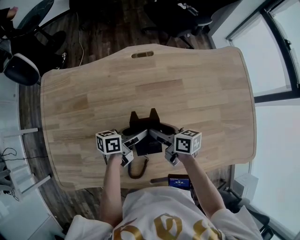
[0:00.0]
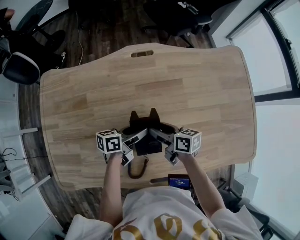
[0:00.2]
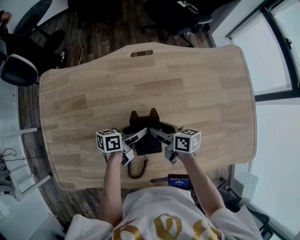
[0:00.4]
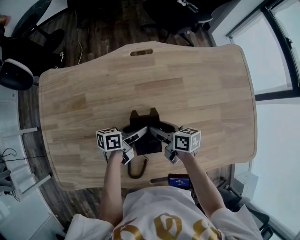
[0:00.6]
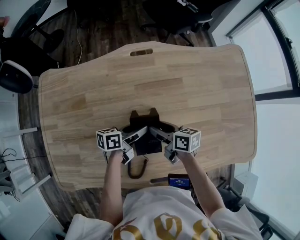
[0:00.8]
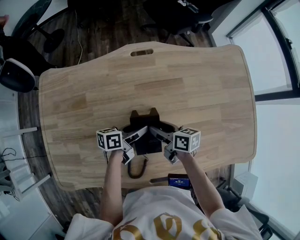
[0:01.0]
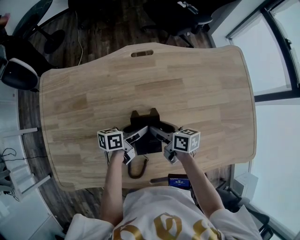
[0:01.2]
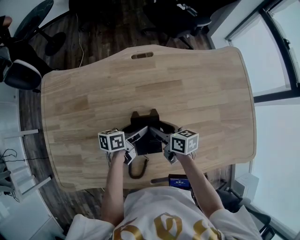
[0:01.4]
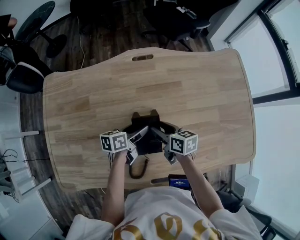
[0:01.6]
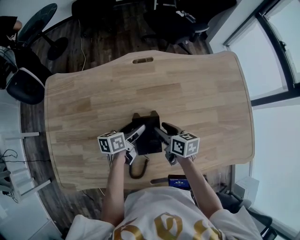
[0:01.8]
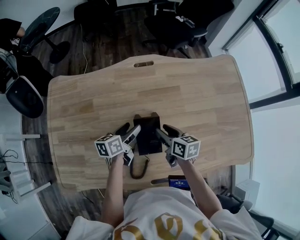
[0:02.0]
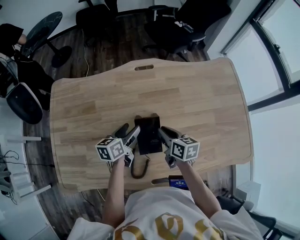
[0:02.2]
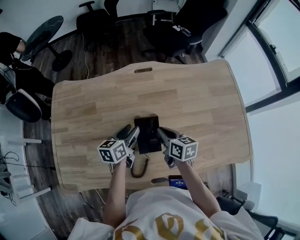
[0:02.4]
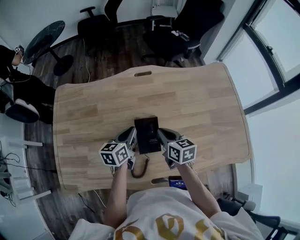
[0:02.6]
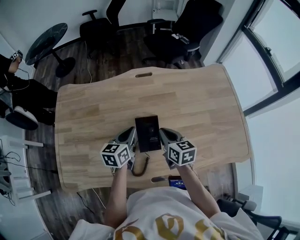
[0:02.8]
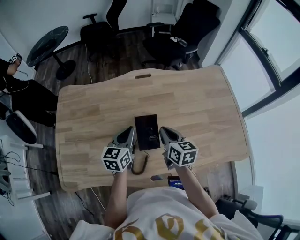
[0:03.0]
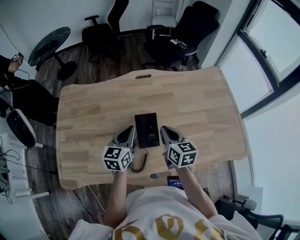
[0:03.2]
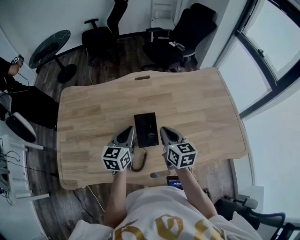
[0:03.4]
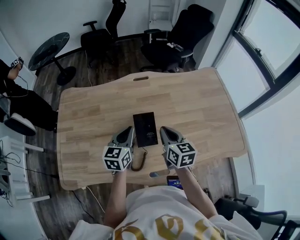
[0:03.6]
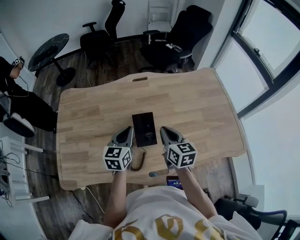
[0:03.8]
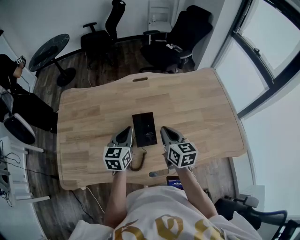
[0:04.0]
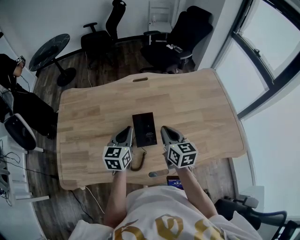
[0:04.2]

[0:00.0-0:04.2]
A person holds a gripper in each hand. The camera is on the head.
0:00.0 to 0:01.4: The grippers make only small movements.
0:01.4 to 0:02.8: The right gripper shifts approximately 10 cm upward and backward, swivels roughly 30 degrees, and closes up; the left gripper travels upward by roughly 15 cm, swivels approximately 40 degrees, and closes up.
0:02.8 to 0:04.2: The left gripper is displaced backward and upward by approximately 10 cm. Meanwhile the right gripper travels upward and backward by some 10 cm.

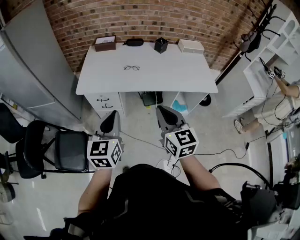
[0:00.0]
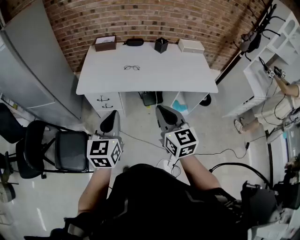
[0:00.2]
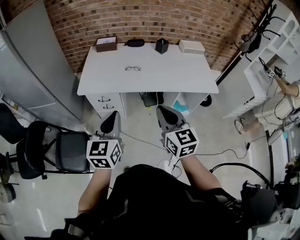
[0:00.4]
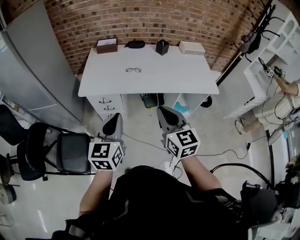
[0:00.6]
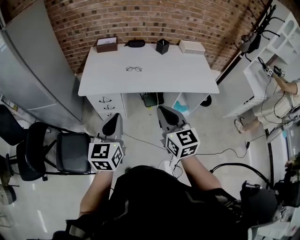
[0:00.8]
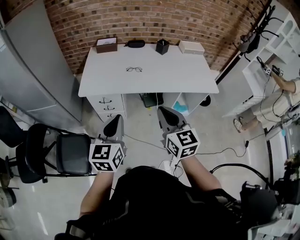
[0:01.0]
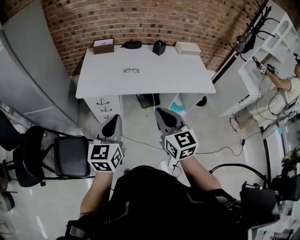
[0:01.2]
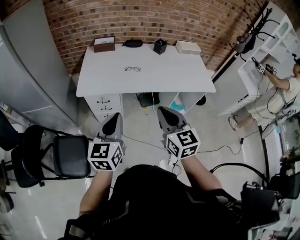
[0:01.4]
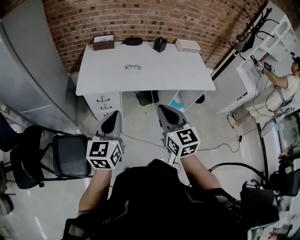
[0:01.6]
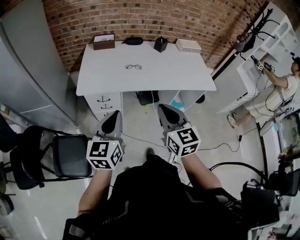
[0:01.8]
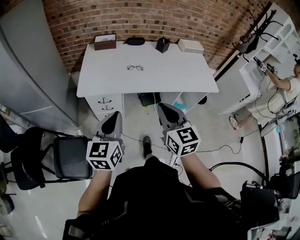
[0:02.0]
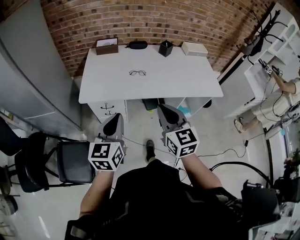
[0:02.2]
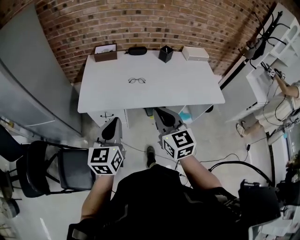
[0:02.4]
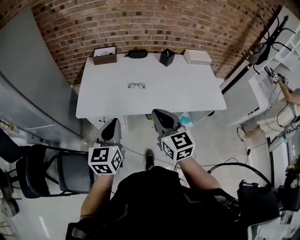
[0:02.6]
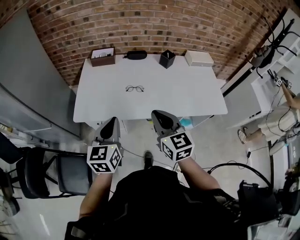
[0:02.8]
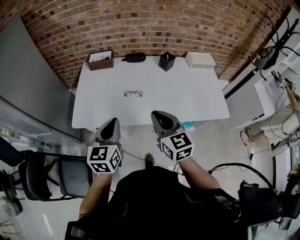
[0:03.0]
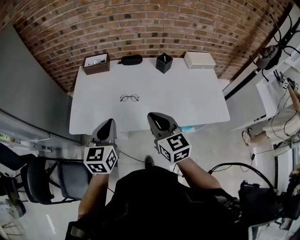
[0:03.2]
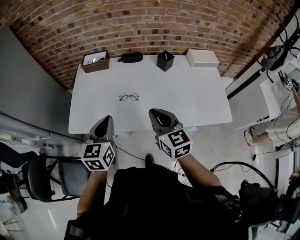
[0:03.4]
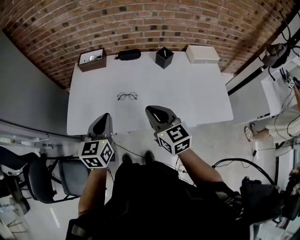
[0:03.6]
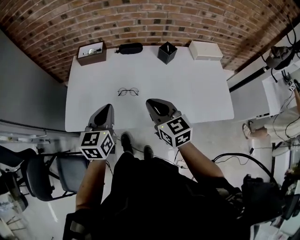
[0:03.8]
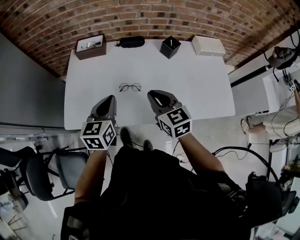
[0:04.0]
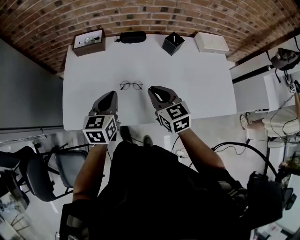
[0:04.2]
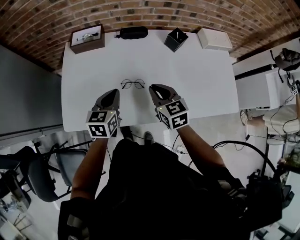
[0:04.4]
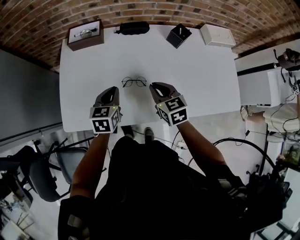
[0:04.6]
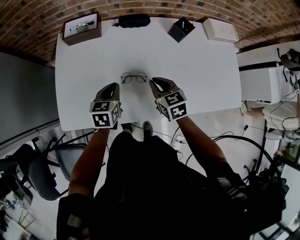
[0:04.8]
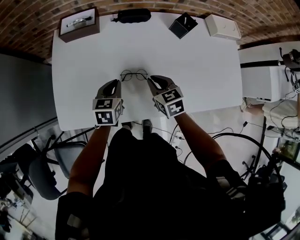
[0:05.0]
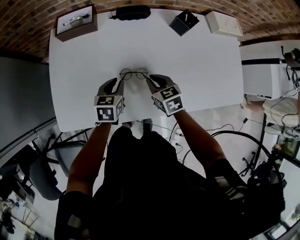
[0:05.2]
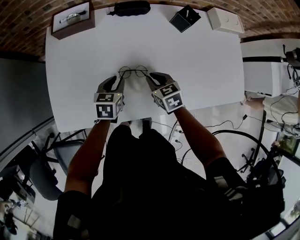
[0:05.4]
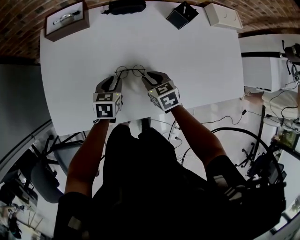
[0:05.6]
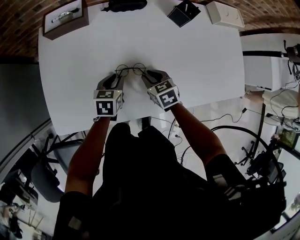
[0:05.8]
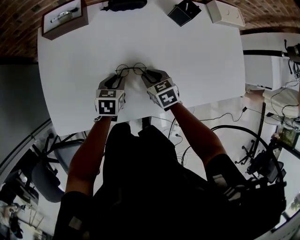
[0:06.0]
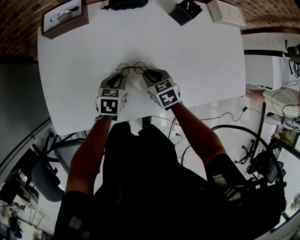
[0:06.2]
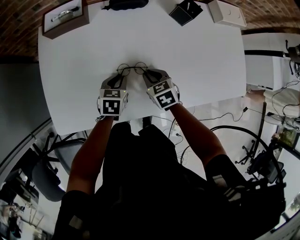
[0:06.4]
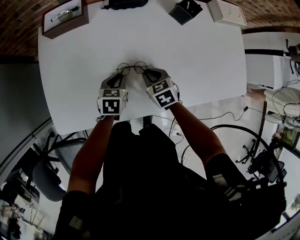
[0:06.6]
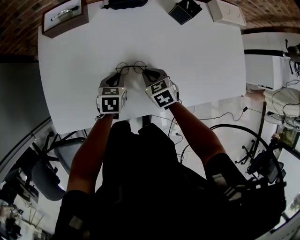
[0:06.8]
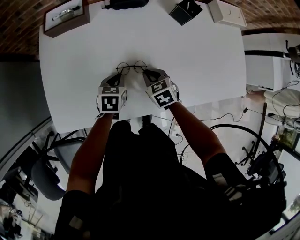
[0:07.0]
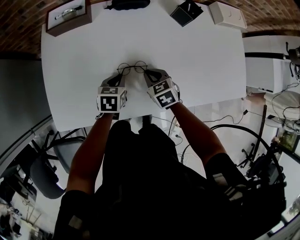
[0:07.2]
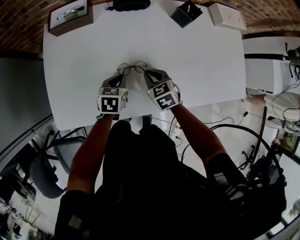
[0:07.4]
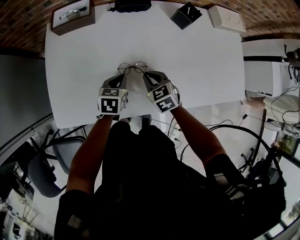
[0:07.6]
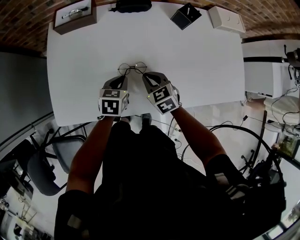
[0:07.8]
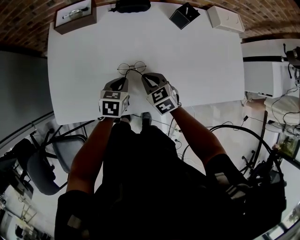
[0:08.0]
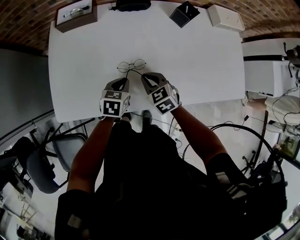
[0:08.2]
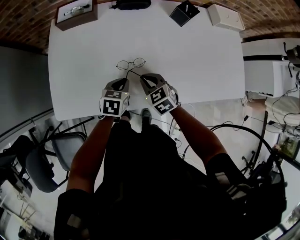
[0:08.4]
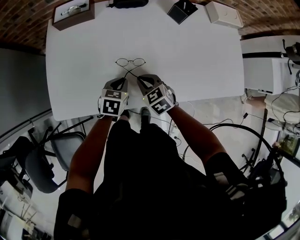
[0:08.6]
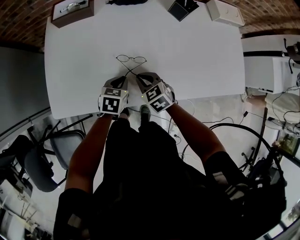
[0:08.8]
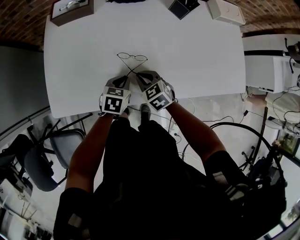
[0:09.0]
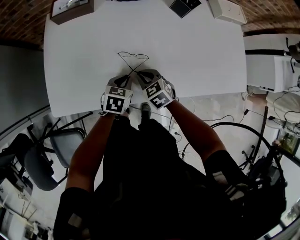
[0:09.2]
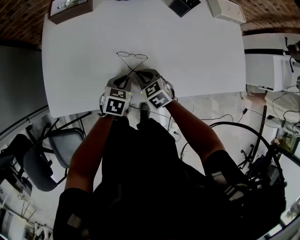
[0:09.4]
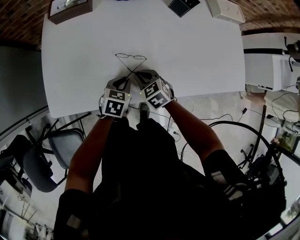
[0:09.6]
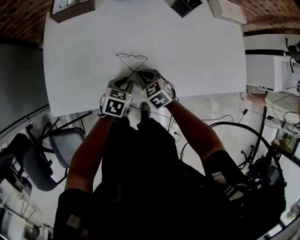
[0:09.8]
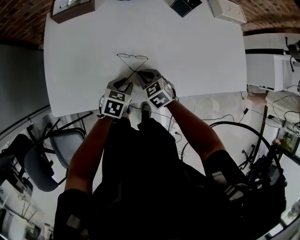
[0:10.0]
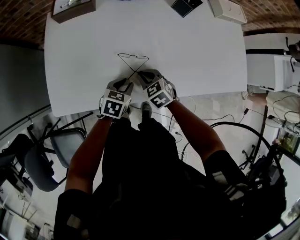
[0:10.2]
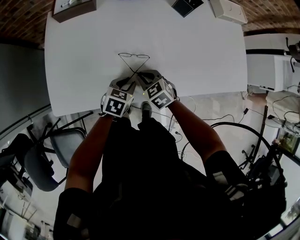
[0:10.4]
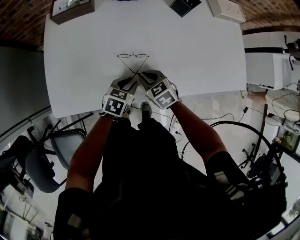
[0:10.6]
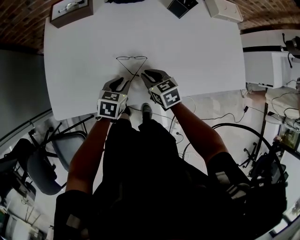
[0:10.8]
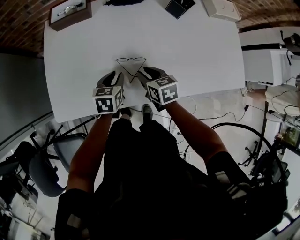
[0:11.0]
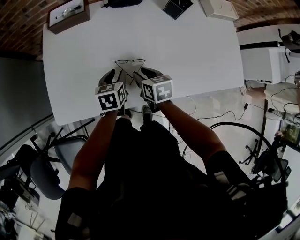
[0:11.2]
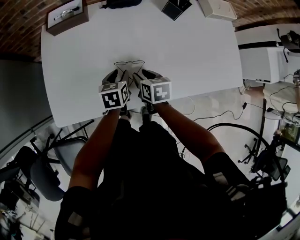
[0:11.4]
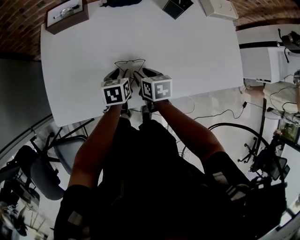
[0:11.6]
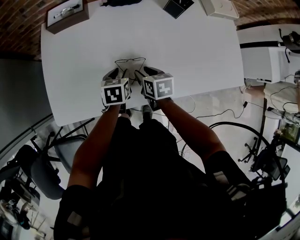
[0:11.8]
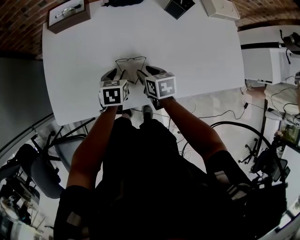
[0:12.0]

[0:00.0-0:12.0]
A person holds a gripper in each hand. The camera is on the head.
0:00.0 to 0:01.6: The grippers both shift to the left by roughly 10 cm.
0:01.6 to 0:03.0: The grippers both shift forward by approximately 25 cm.
0:03.0 to 0:04.4: The grippers both shift forward and downward by about 25 cm.
0:04.4 to 0:06.0: Both grippers travel together downward, about 20 cm. The left gripper swivels roughly 20 degrees, and opens up; the right gripper rotates about 20 degrees.
0:06.0 to 0:07.6: The grippers make only small movements.
0:07.6 to 0:09.0: The two grippers go some 5 cm backward.
0:09.0 to 0:10.4: The grippers move only a little.
0:10.4 to 0:12.0: The left gripper goes some 10 cm forward, and changes its angle by some 20 degrees. The right gripper ends up about 5 cm from where it was, turns by about 40 degrees, and opens its fingers.

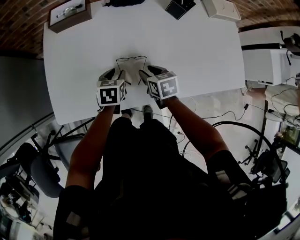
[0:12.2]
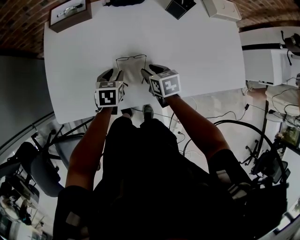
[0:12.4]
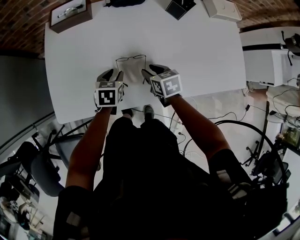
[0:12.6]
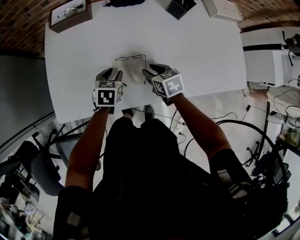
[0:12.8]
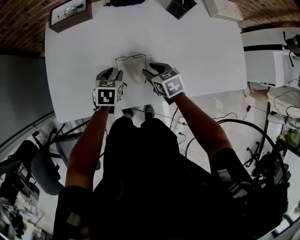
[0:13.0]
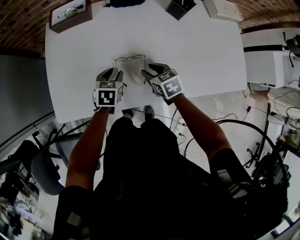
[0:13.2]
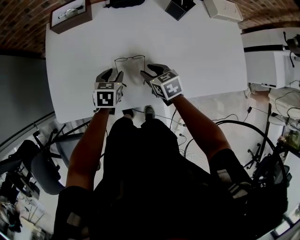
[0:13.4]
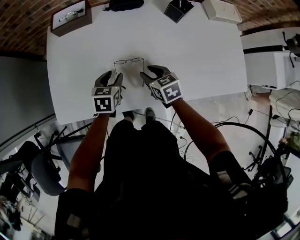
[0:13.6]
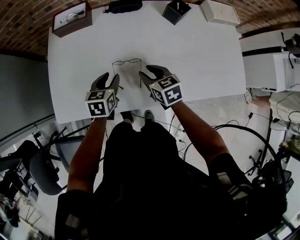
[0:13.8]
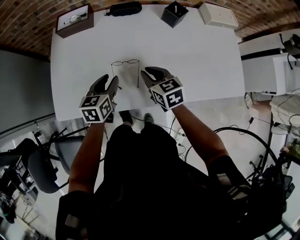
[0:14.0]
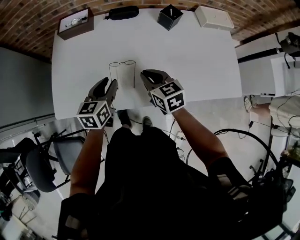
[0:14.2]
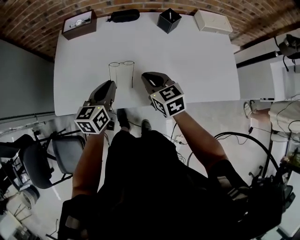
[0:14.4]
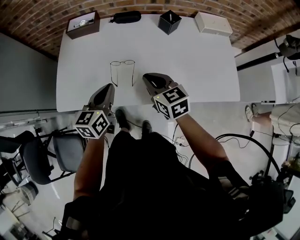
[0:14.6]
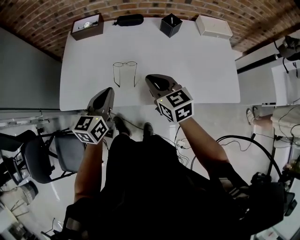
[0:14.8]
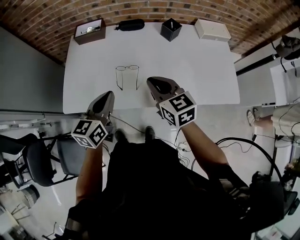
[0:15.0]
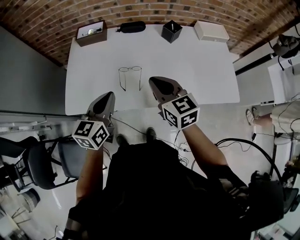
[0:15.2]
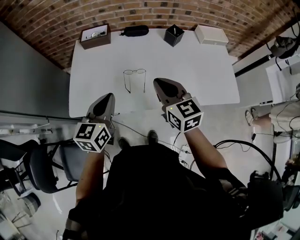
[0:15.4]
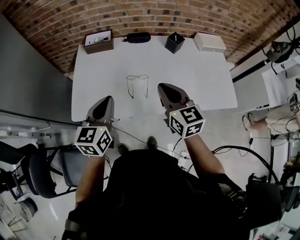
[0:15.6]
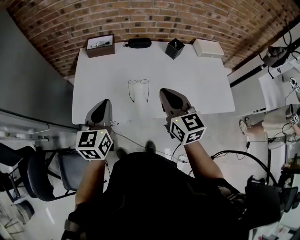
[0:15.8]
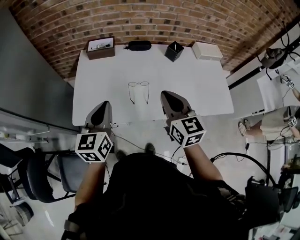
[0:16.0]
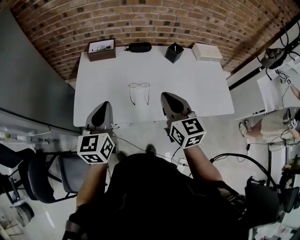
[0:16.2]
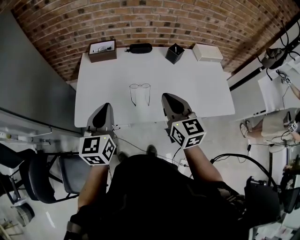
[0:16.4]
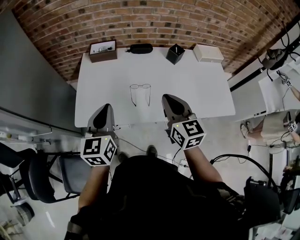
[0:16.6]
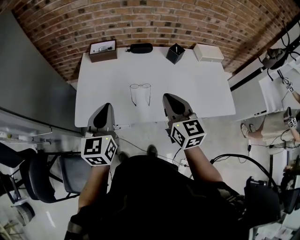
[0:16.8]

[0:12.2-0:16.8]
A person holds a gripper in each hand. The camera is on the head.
0:12.2 to 0:13.8: The grippers both shift upward by about 5 cm.
0:13.8 to 0:15.2: The two grippers go roughly 25 cm upward and backward. The right gripper swivels approximately 20 degrees, and closes its fingers. Meanwhile the left gripper turns by roughly 20 degrees, and closes.
0:15.2 to 0:16.8: The left gripper shifts roughly 10 cm to the left and upward. The right gripper shifts roughly 5 cm upward.

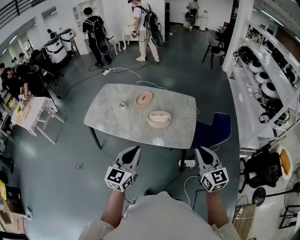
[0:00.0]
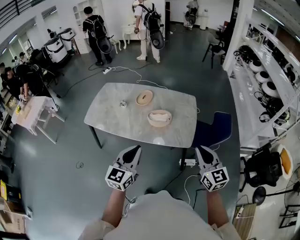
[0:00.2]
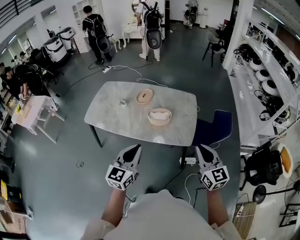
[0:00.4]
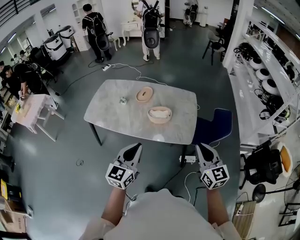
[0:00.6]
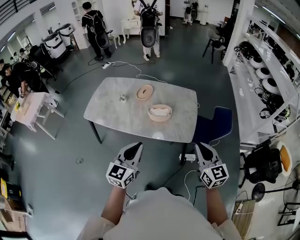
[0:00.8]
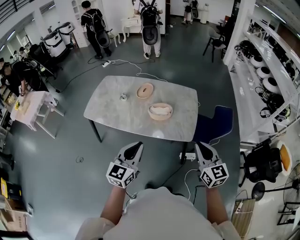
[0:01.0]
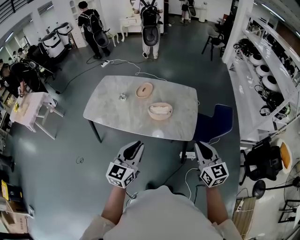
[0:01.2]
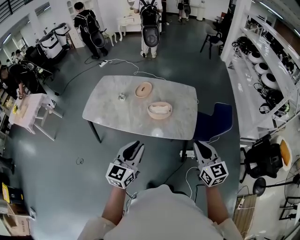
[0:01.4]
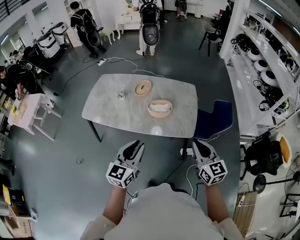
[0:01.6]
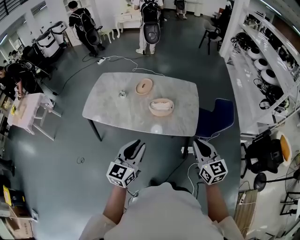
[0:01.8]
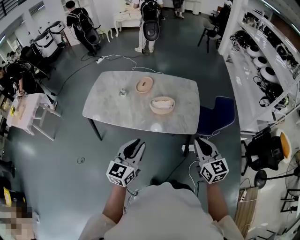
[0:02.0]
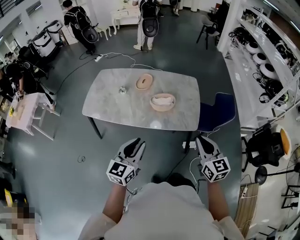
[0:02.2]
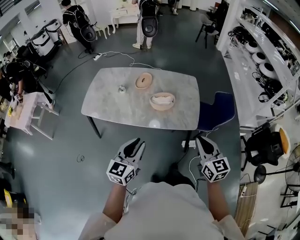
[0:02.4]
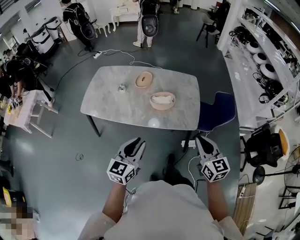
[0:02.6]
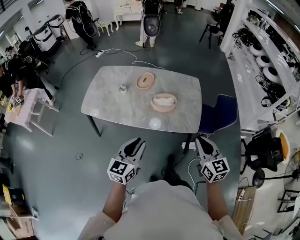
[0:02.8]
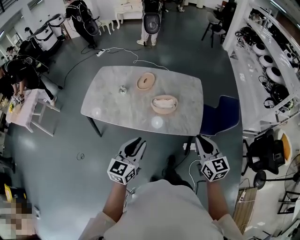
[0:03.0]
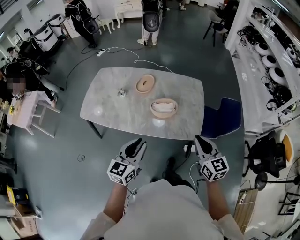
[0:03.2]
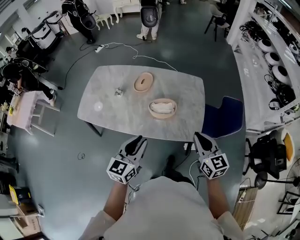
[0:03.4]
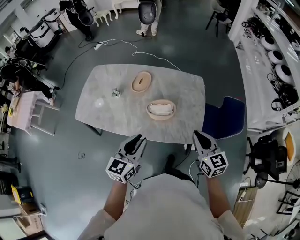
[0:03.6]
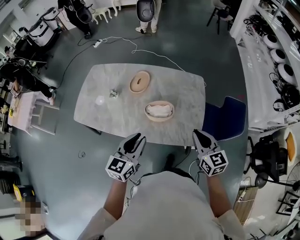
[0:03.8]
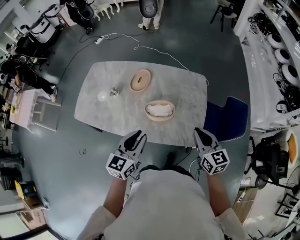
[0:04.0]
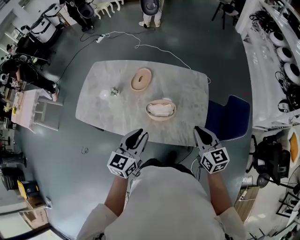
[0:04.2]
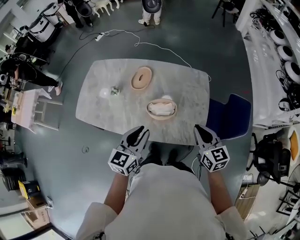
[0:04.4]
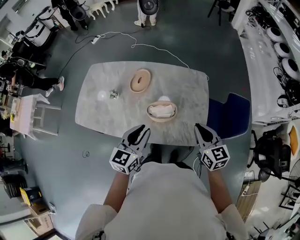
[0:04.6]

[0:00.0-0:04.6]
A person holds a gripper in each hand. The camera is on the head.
0:00.0 to 0:01.6: The right gripper ends up about 5 cm from where it was.
0:01.6 to 0:03.0: Both grippers move forward, approximately 5 cm.
0:03.0 to 0:04.6: Both grippers travel together forward, approximately 25 cm.
